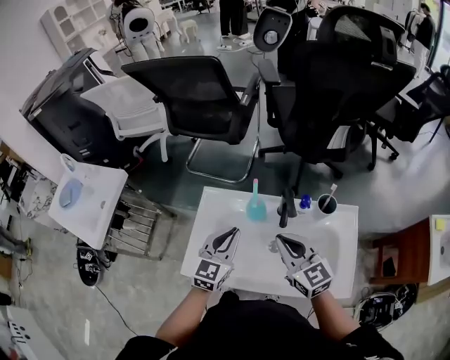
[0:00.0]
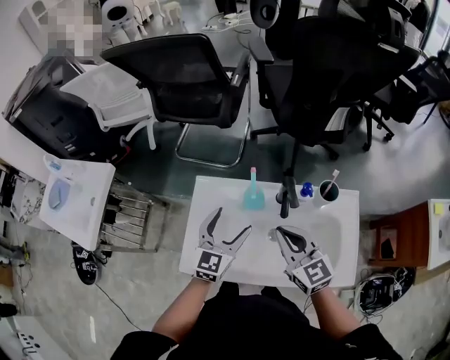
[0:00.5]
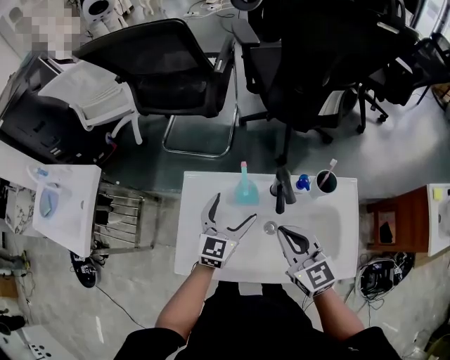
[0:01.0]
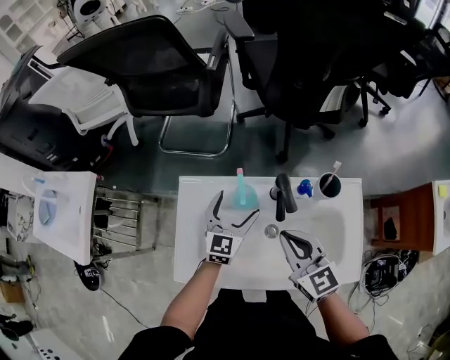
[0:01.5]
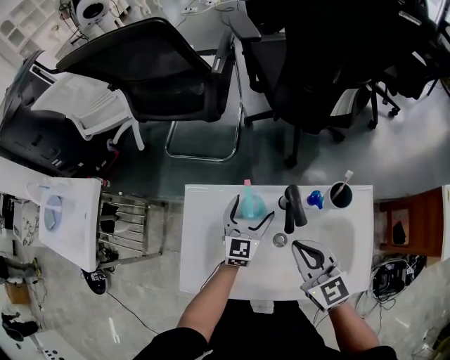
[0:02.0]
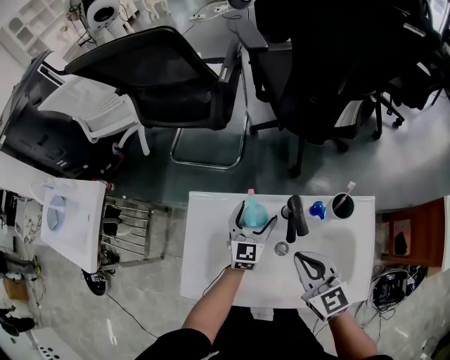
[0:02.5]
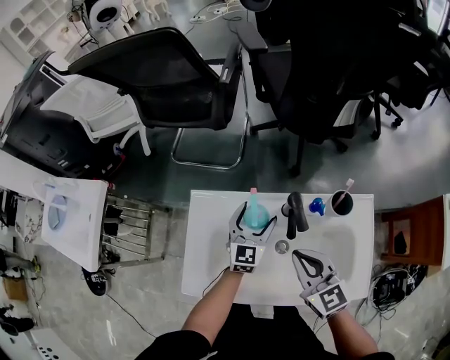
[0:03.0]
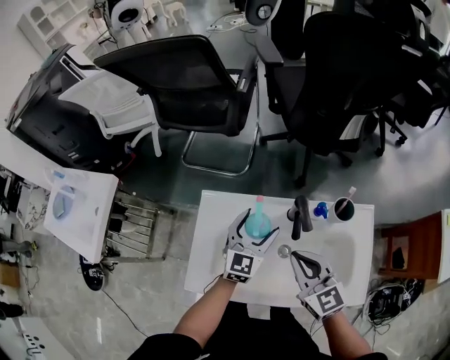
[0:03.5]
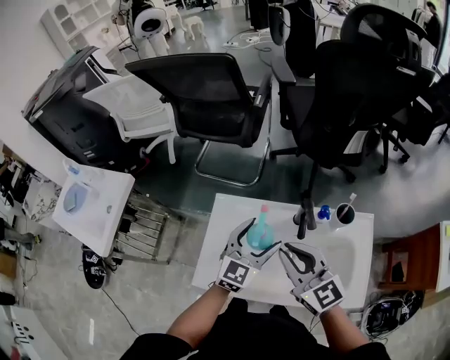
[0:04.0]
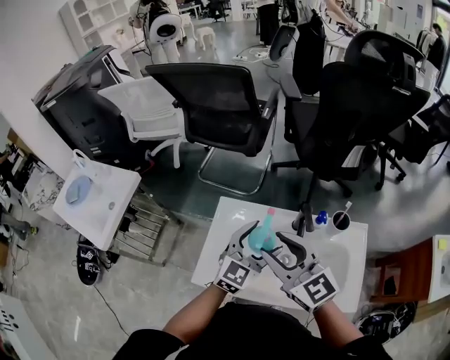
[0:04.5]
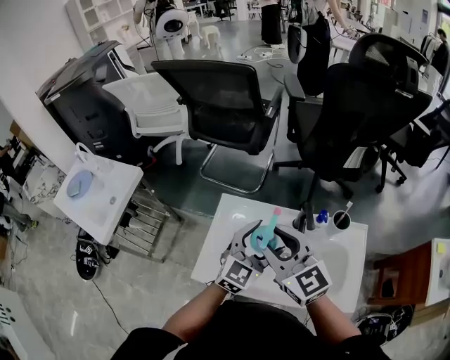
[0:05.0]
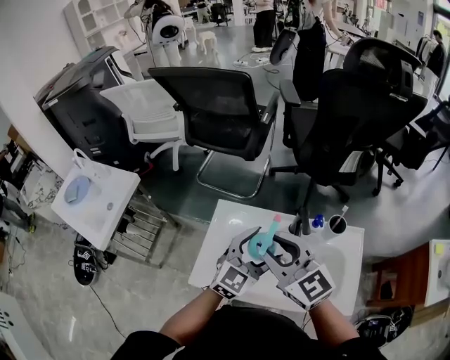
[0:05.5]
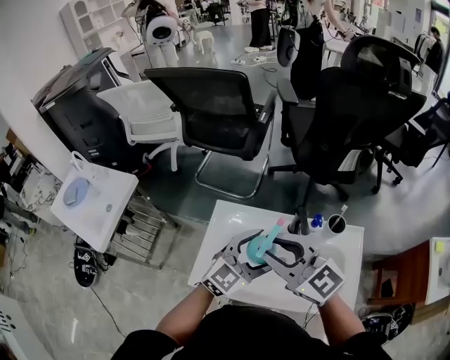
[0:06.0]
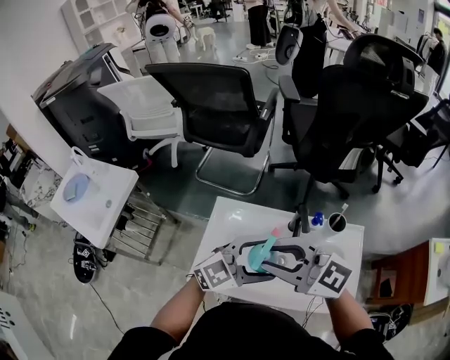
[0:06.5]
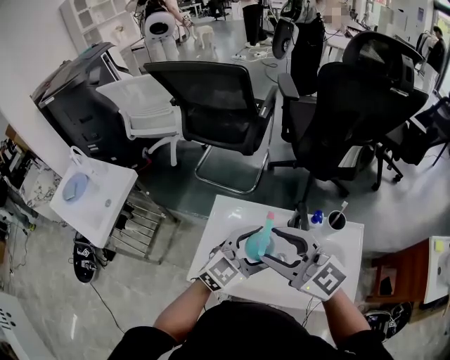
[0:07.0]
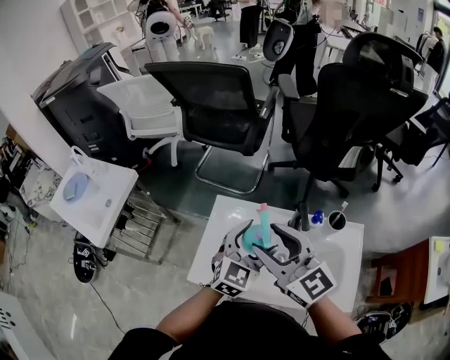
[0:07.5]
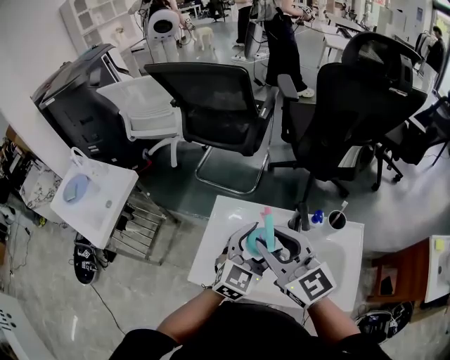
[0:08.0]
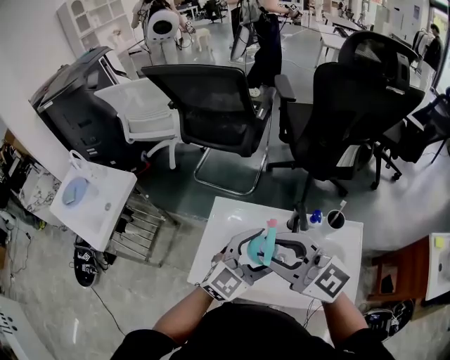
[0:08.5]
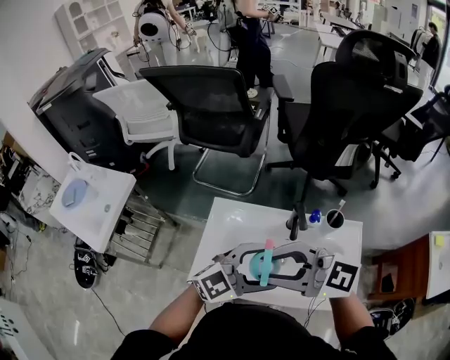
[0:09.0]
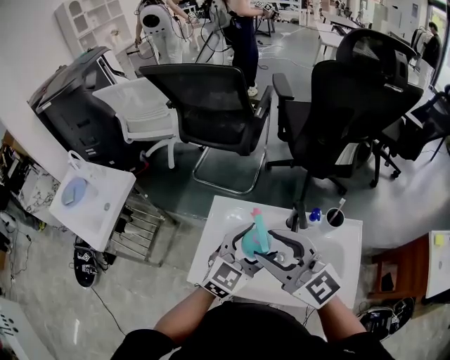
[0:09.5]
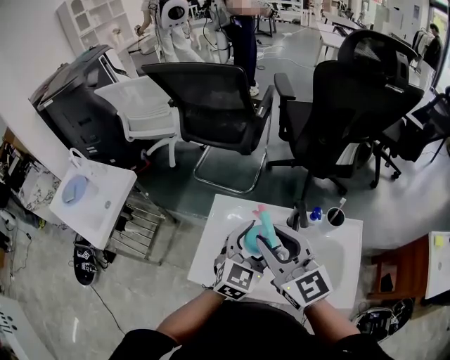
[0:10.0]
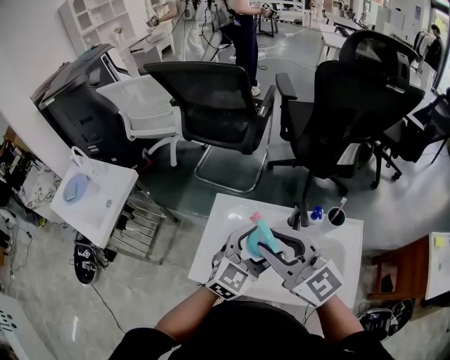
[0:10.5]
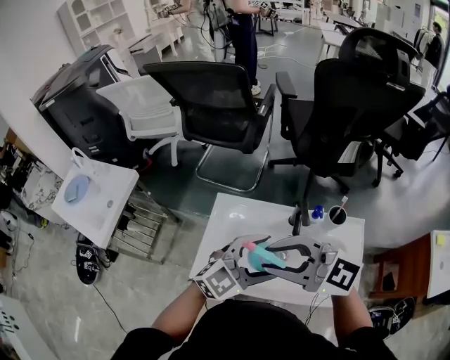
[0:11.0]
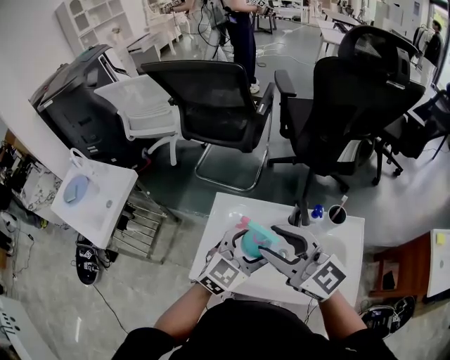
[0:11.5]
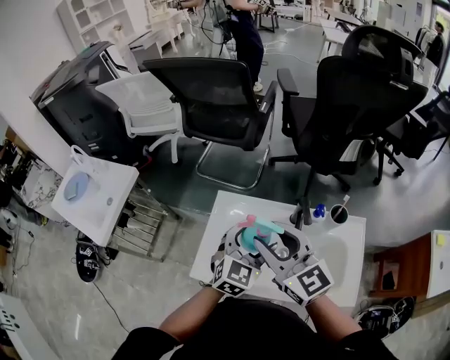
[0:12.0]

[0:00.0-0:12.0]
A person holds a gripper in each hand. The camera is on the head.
0:00.0 to 0:02.0: The left gripper shifts about 20 cm downward, forward and to the right, and opens up, while the right gripper is displaced downward by some 5 cm.
0:02.0 to 0:04.0: The left gripper goes some 15 cm upward and backward; the right gripper goes roughly 15 cm upward and to the left.
0:04.0 to 0:06.0: The left gripper travels upward and backward by roughly 10 cm. The right gripper is displaced upward and to the left by roughly 10 cm, and opens up.

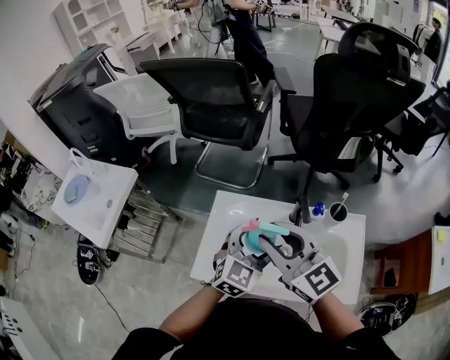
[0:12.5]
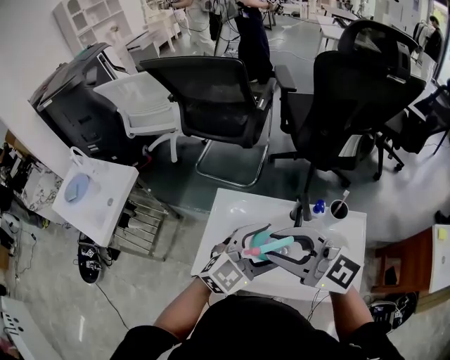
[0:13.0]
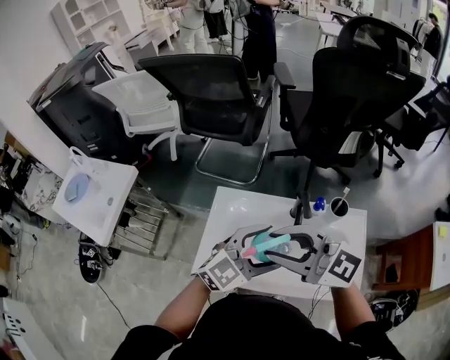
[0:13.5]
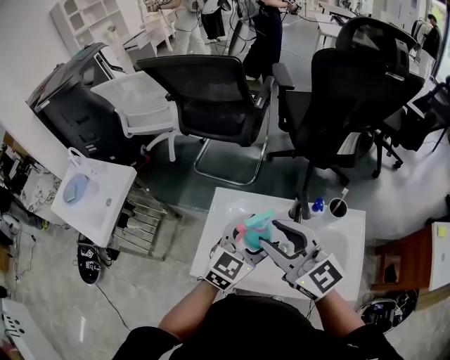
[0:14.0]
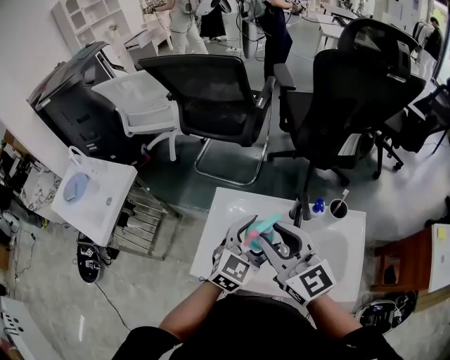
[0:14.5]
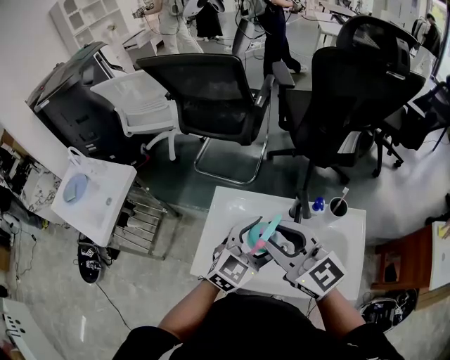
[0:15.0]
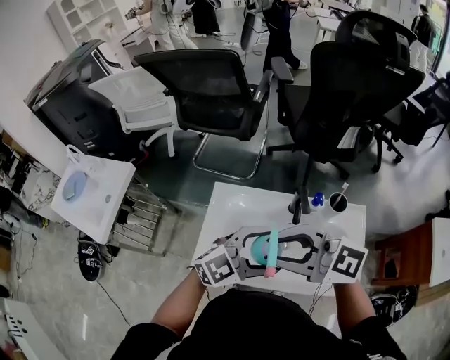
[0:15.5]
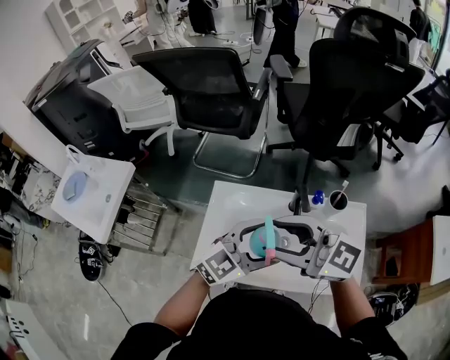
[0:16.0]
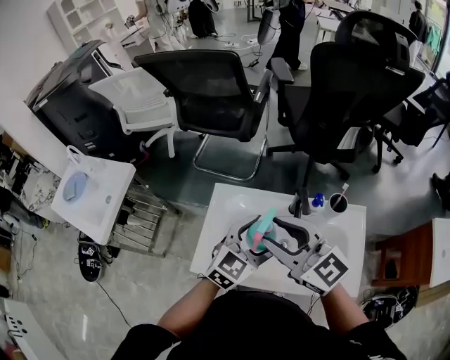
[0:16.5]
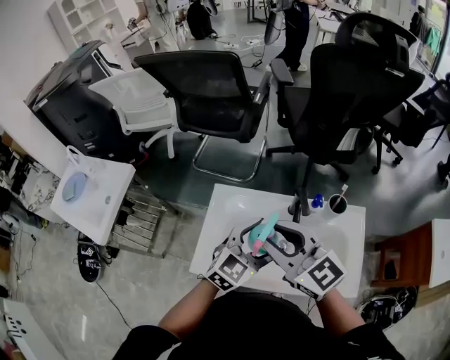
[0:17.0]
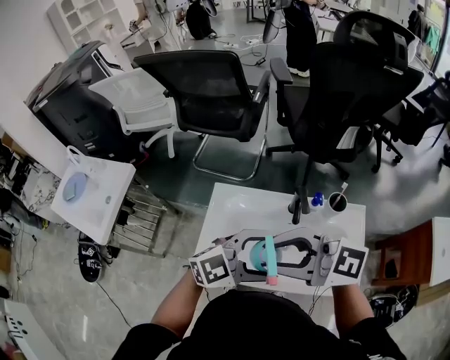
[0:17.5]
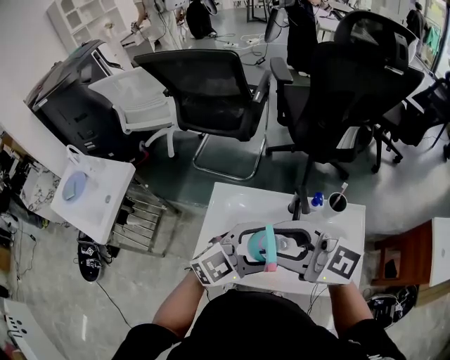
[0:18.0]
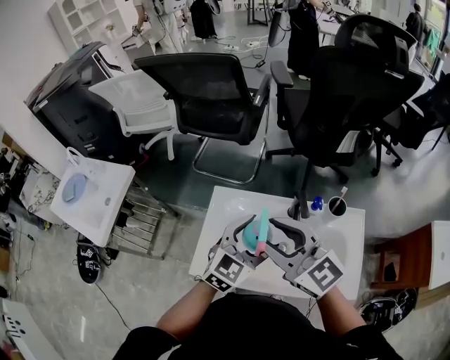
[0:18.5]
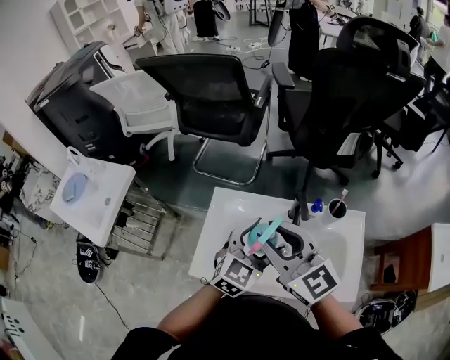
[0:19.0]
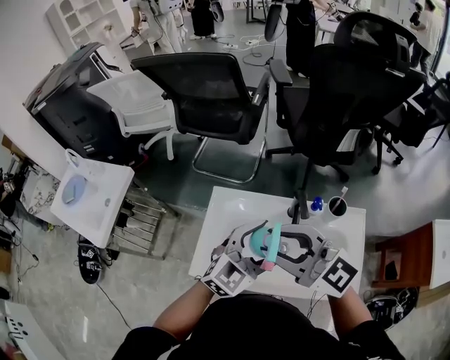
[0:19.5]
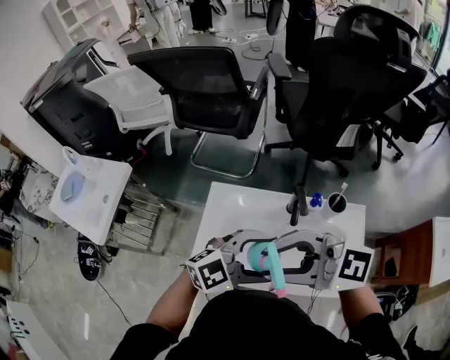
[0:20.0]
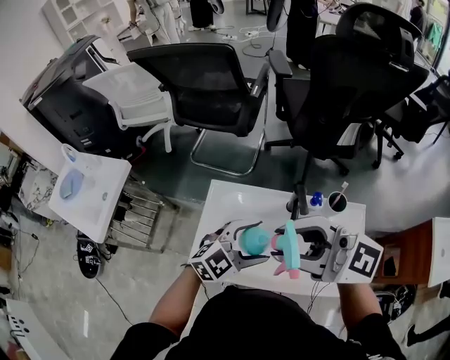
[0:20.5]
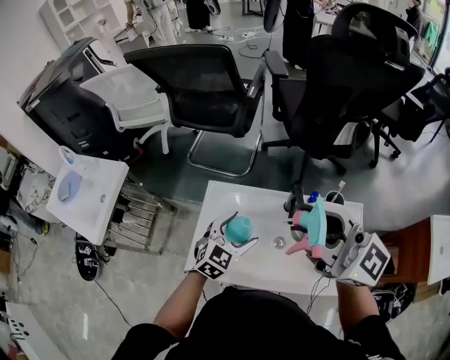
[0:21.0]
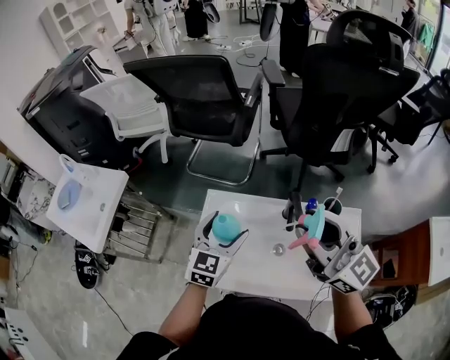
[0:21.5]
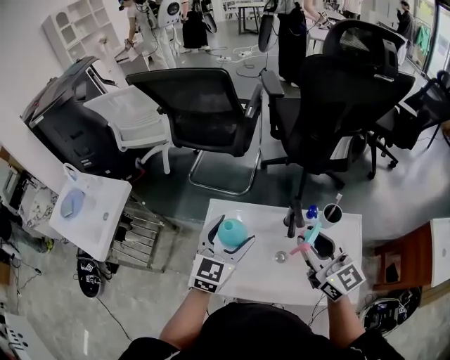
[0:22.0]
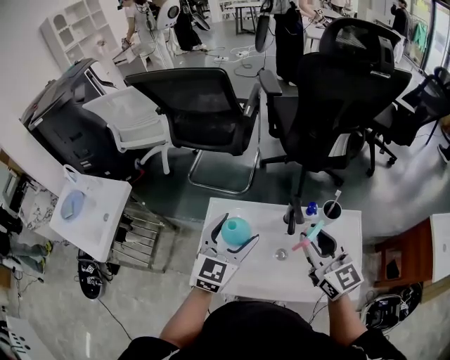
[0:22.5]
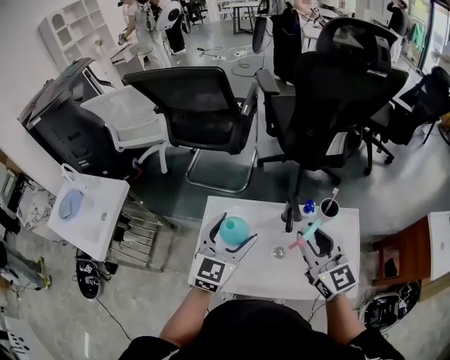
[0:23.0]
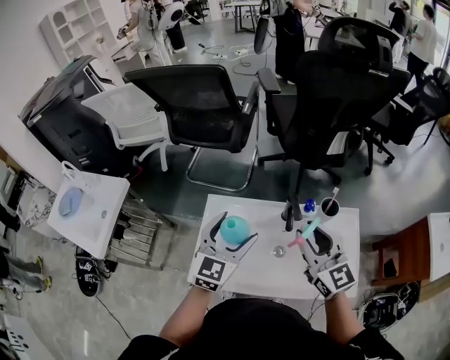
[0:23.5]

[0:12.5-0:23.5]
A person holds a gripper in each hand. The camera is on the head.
0:14.5 to 0:16.0: The right gripper rotates about 30 degrees, while the left gripper changes place by roughly 5 cm, and turns by approximately 20 degrees.
0:20.0 to 0:21.5: The left gripper ends up some 20 cm from where it was, and turns by about 60 degrees. The right gripper changes place by roughly 15 cm, and turns by roughly 50 degrees.
0:21.5 to 0:23.5: The left gripper ends up about 5 cm from where it was. Meanwhile the right gripper travels downward by some 10 cm, and rotates about 20 degrees.

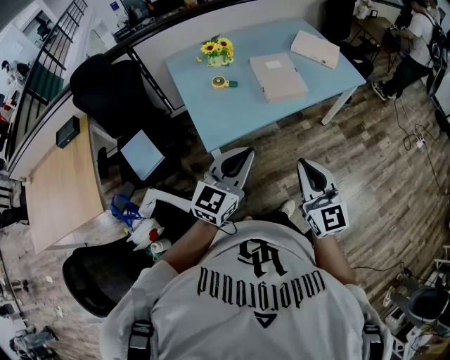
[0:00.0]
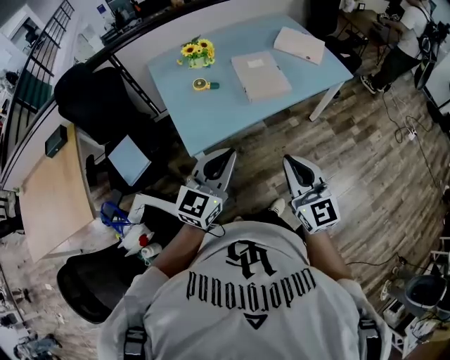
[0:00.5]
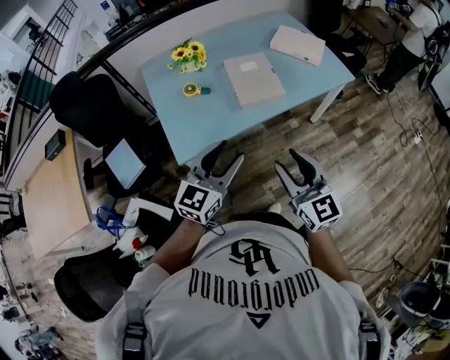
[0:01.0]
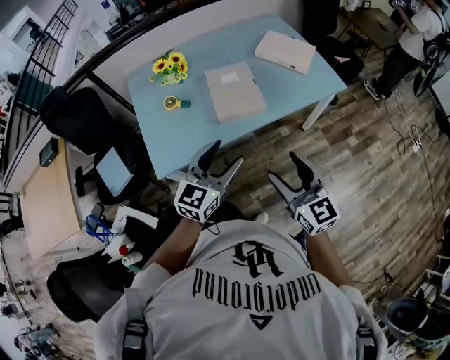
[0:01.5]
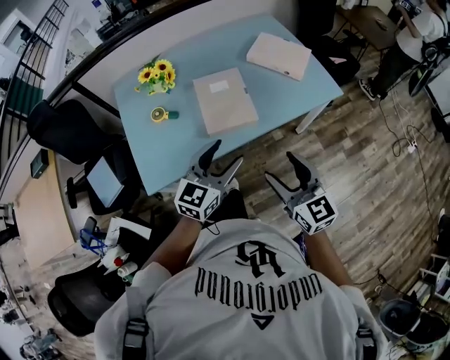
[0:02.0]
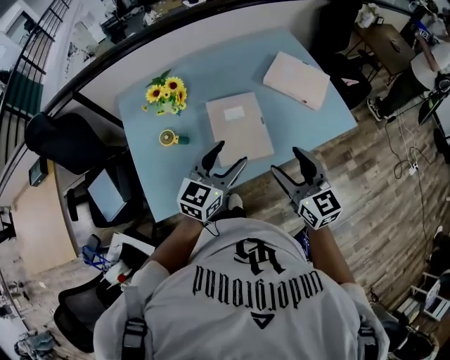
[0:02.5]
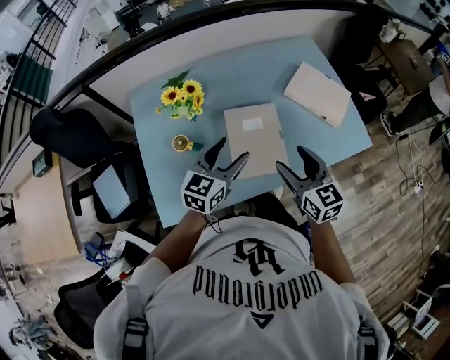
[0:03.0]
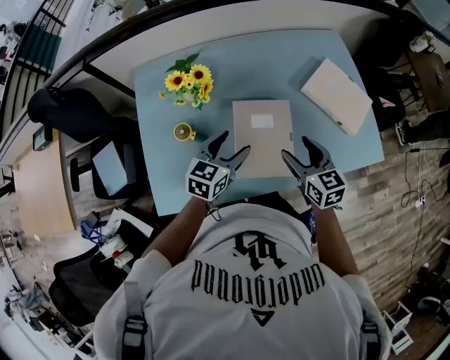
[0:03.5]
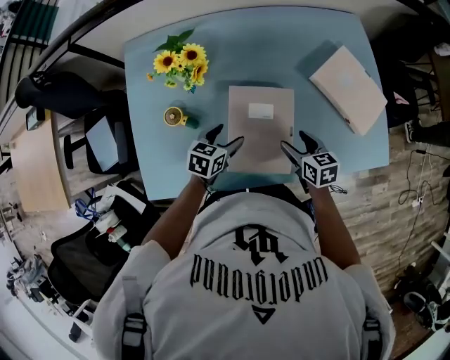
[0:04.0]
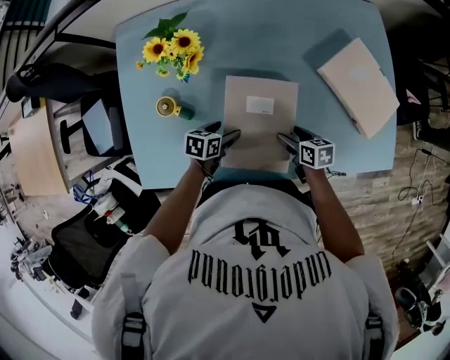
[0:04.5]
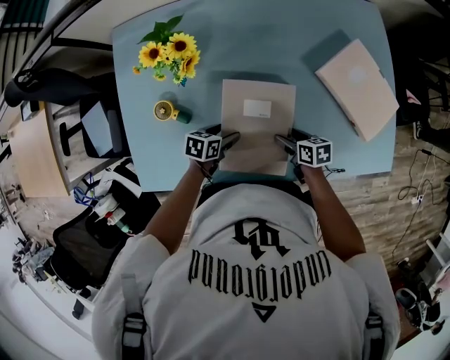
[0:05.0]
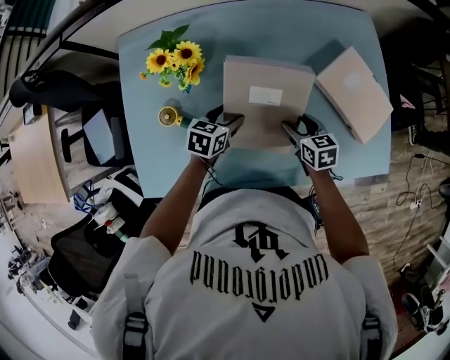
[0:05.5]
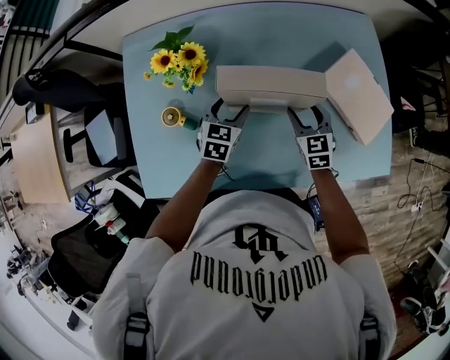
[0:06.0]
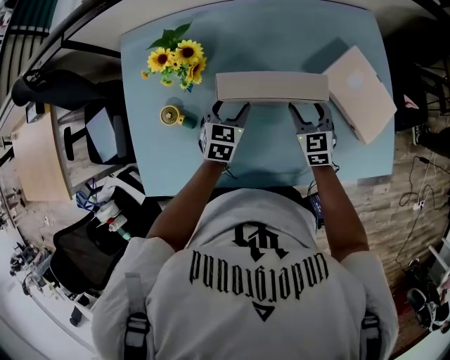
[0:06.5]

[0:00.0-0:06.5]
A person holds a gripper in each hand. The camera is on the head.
0:00.0 to 0:02.0: Both grippers move forward and to the right, roughly 35 cm. The right gripper opens, while the left gripper opens up.
0:02.0 to 0:04.5: The right gripper heads forward and downward, covering approximately 50 cm, and points its fingers approximately 40 degrees further downward. The left gripper travels downward and forward by approximately 50 cm, and angles its fingers downward, by some 40 degrees.
0:04.5 to 0:06.5: Both grippers travel together forward and upward, about 15 cm. The right gripper rotates some 50 degrees. Meanwhile the left gripper changes its angle by about 40 degrees.
